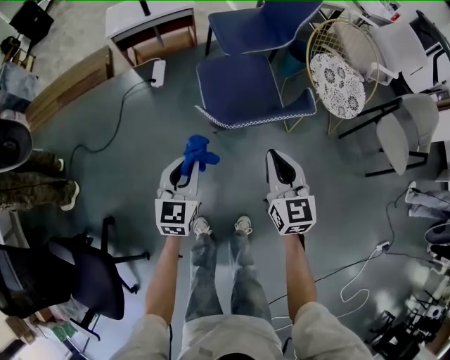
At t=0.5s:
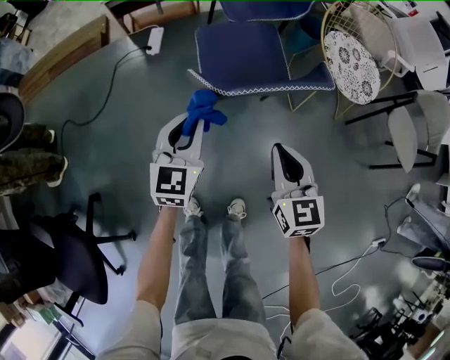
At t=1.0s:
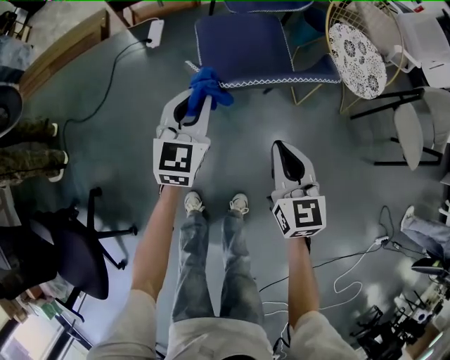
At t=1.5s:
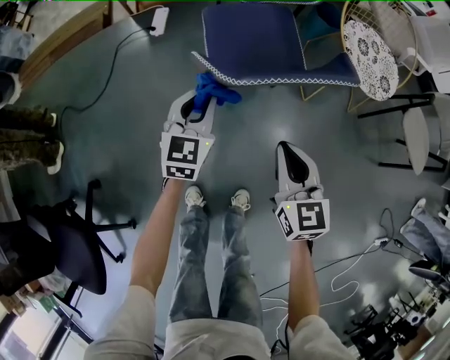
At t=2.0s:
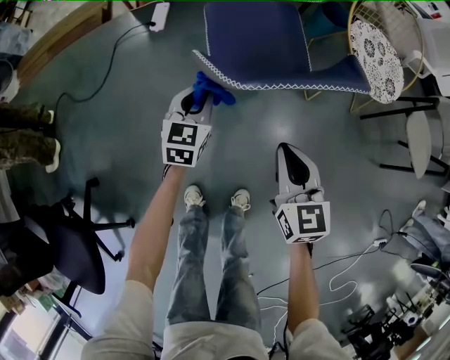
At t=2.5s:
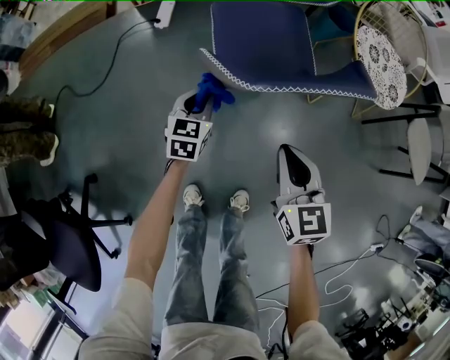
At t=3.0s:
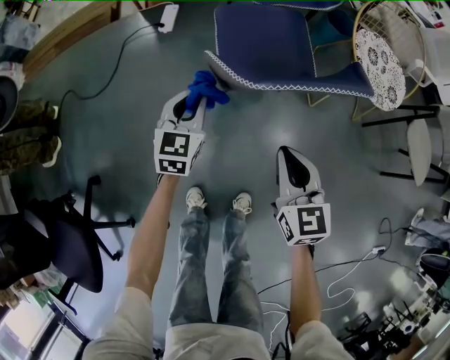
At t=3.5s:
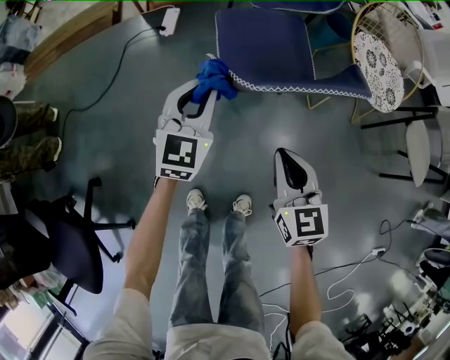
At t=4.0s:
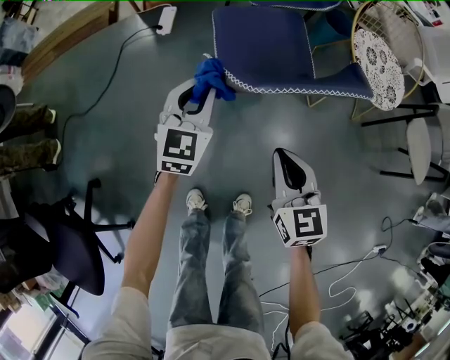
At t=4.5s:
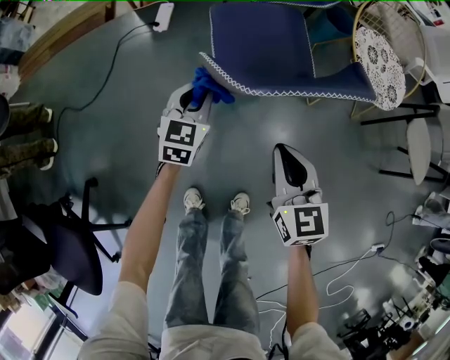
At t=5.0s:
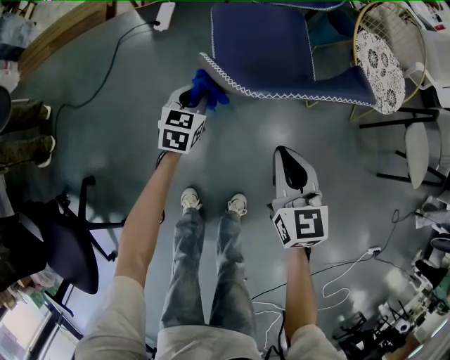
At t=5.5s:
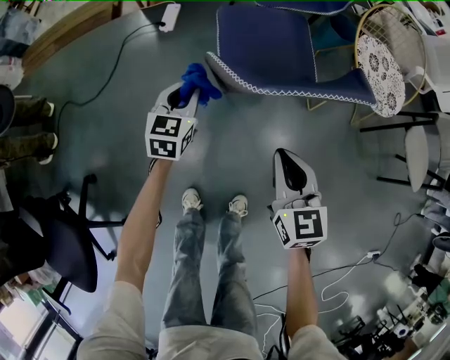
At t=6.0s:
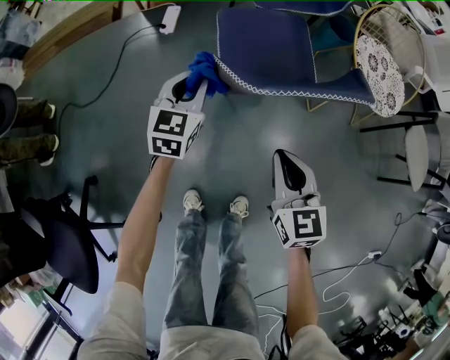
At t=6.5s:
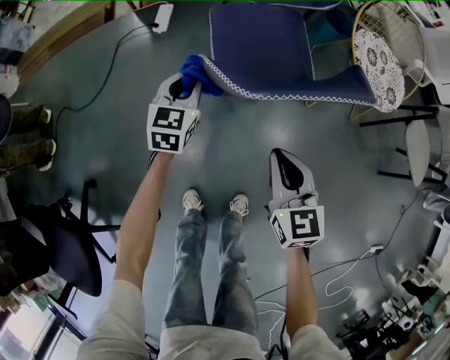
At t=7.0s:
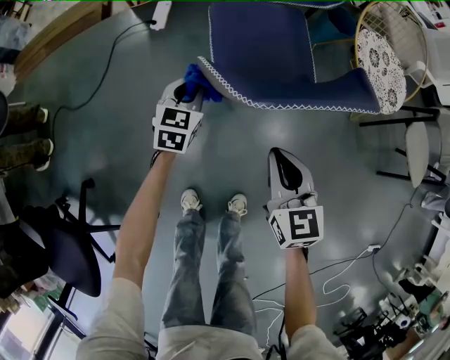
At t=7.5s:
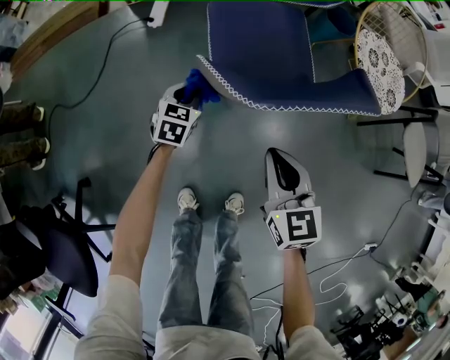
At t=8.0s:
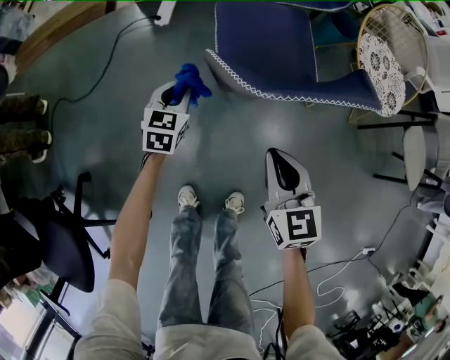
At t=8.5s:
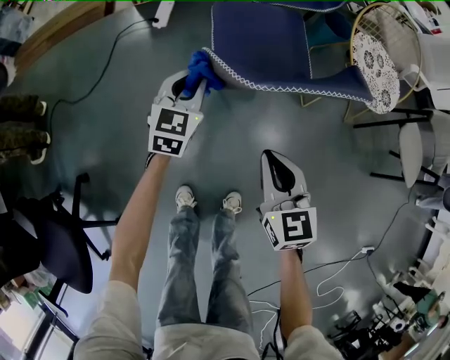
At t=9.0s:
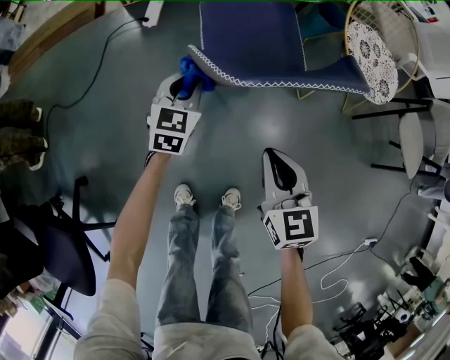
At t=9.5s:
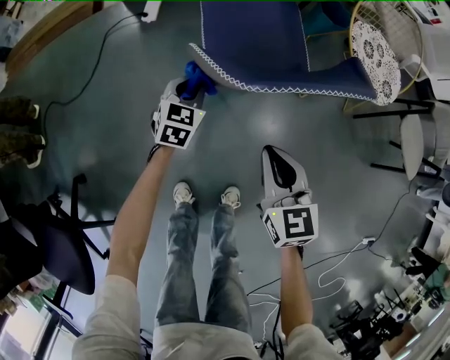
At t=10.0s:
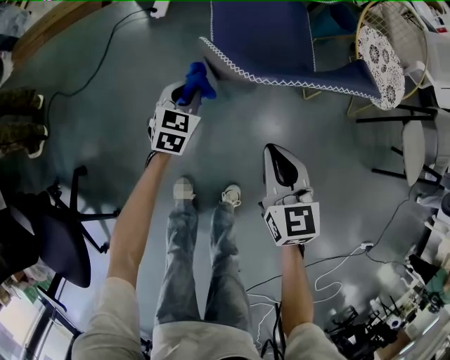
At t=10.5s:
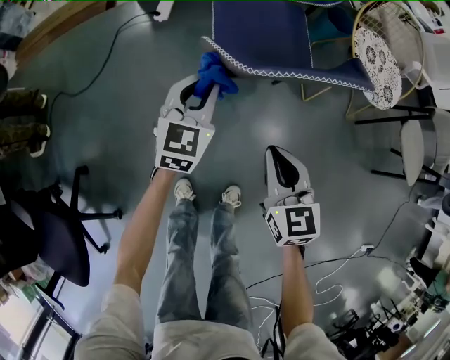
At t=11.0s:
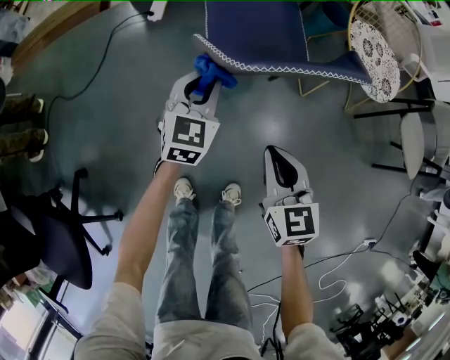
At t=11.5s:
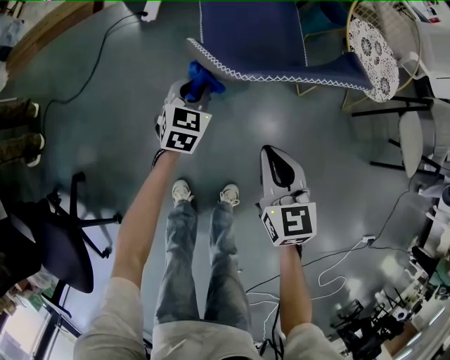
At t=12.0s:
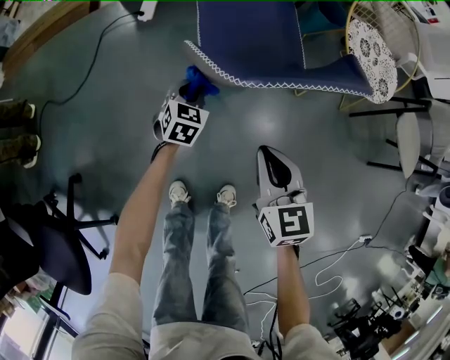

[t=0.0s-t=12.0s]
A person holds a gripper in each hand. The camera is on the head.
t=0.0s to t=2.0s: The left gripper travels downward and forward by about 25 cm. The right gripper moves downward, roughly 15 cm.
t=2.0s to t=4.0s: The left gripper shifts about 10 cm upward.
t=4.0s to t=6.0s: The left gripper moves approximately 15 cm downward and comes back.
t=6.0s to t=8.0s: The left gripper travels downward by about 10 cm.
t=8.0s to t=10.0s: The left gripper moves roughly 10 cm upward and comes back.
t=10.0s to t=12.0s: The left gripper moves some 15 cm upward and comes back.

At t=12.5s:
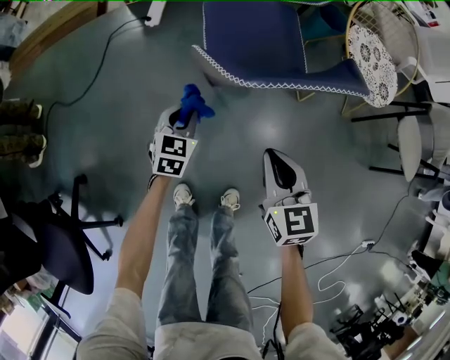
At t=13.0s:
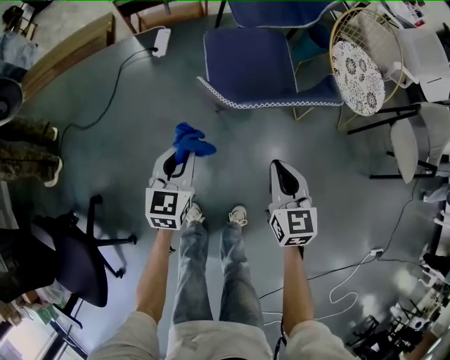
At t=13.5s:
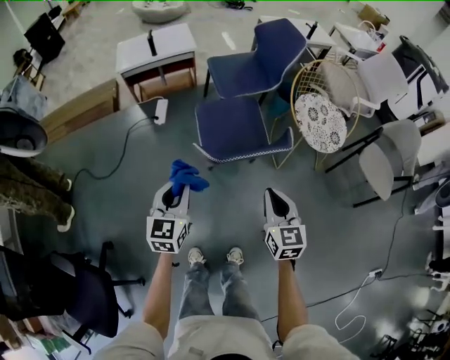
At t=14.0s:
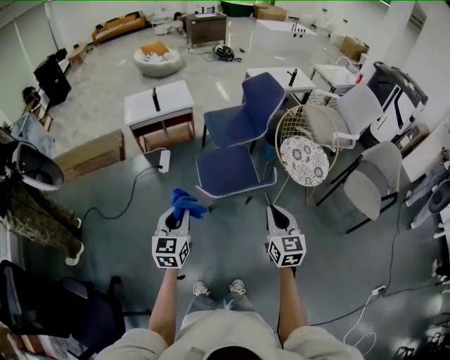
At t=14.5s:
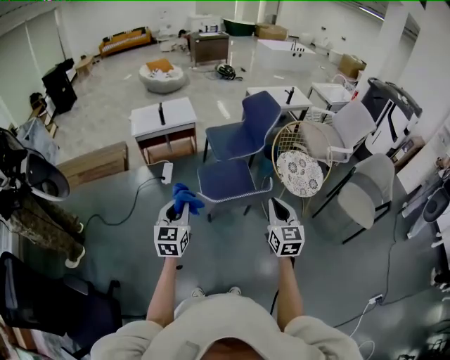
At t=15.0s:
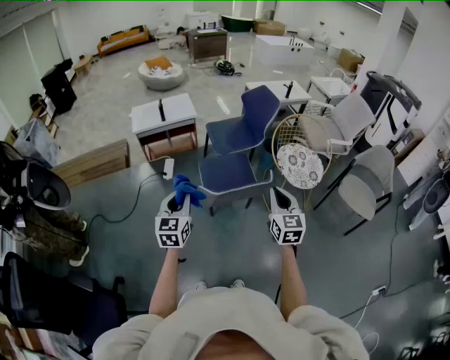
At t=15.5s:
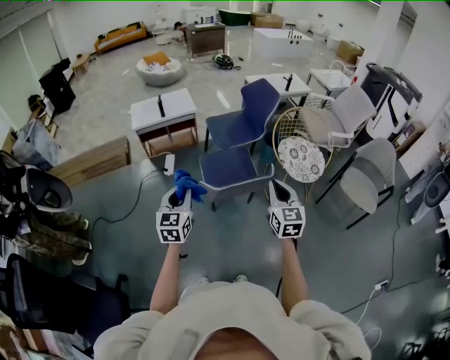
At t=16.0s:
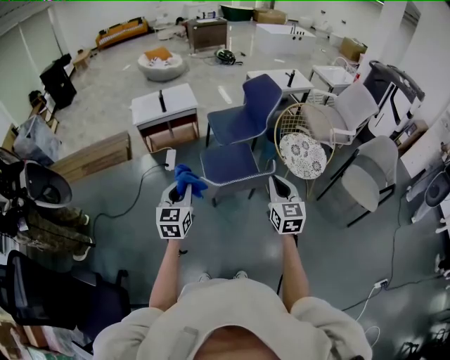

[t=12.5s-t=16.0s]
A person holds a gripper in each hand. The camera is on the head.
t=12.5s to t=14.5s: The two grippers go approximately 50 cm upward. The left gripper turns by approximately 30 degrees. Meanwhile the right gripper swivels some 20 degrees.
t=14.5s to t=16.0s: The grippers make only small movements.

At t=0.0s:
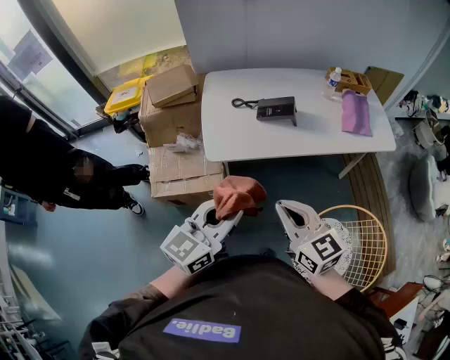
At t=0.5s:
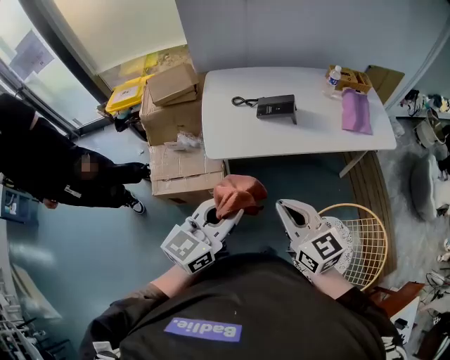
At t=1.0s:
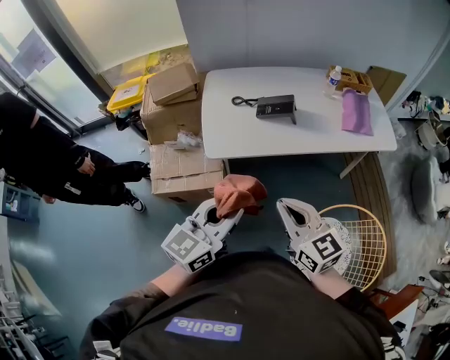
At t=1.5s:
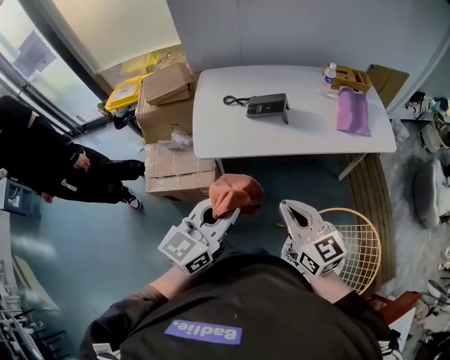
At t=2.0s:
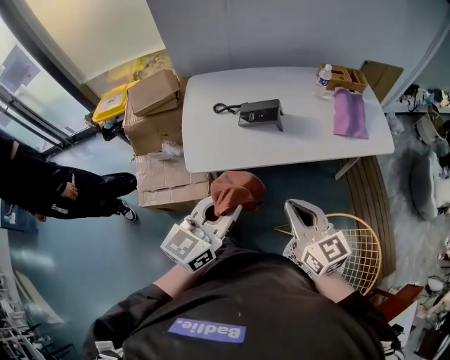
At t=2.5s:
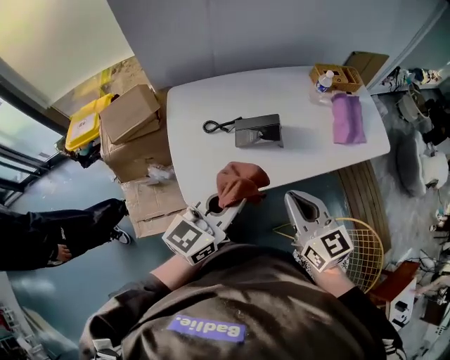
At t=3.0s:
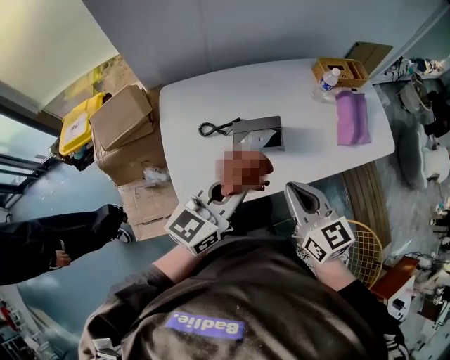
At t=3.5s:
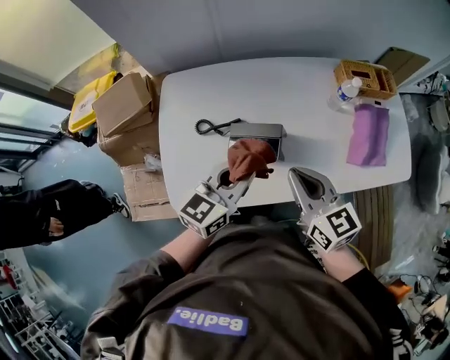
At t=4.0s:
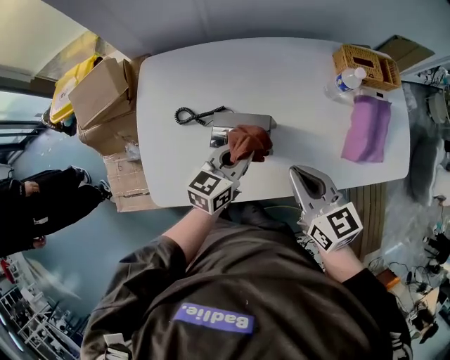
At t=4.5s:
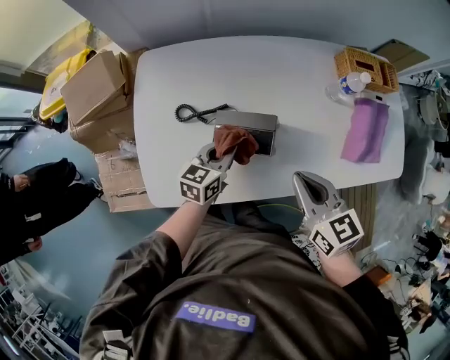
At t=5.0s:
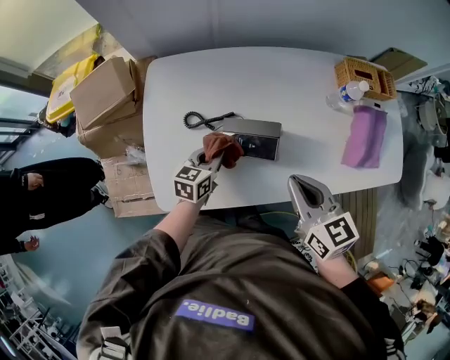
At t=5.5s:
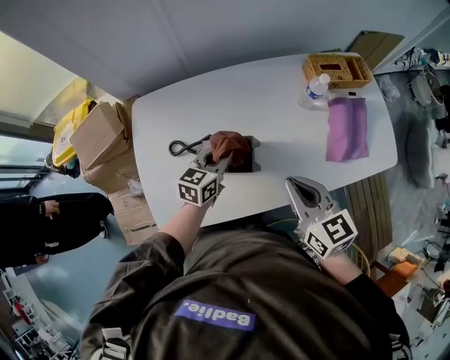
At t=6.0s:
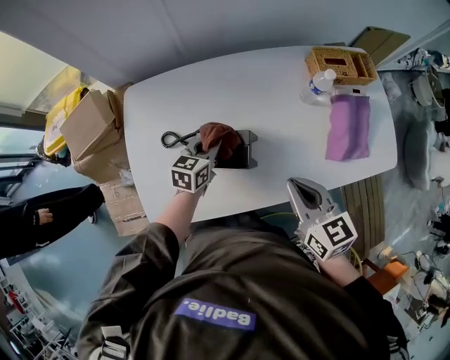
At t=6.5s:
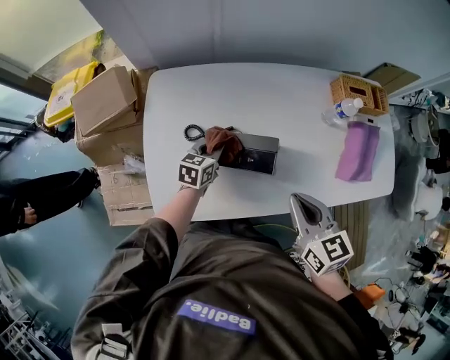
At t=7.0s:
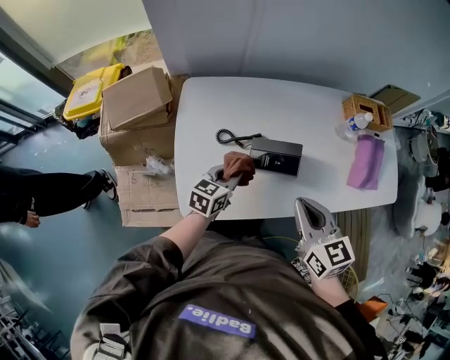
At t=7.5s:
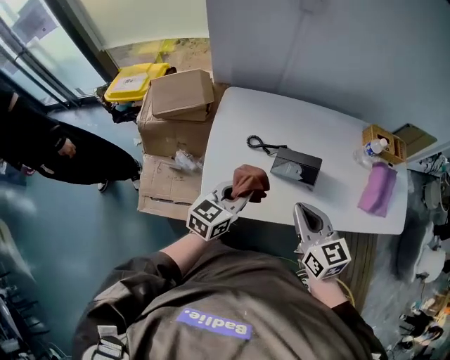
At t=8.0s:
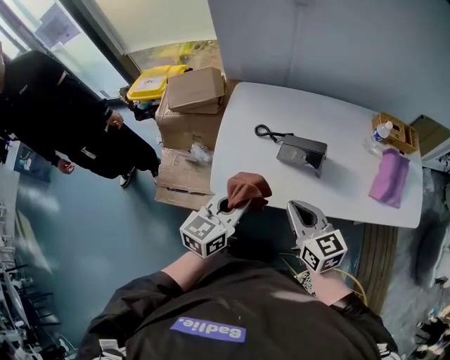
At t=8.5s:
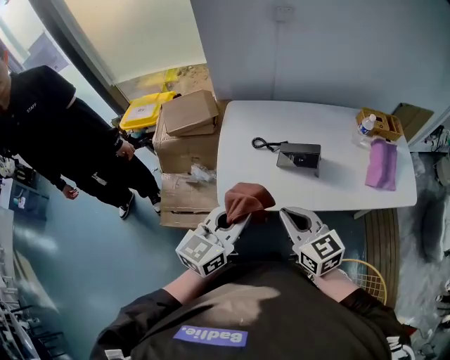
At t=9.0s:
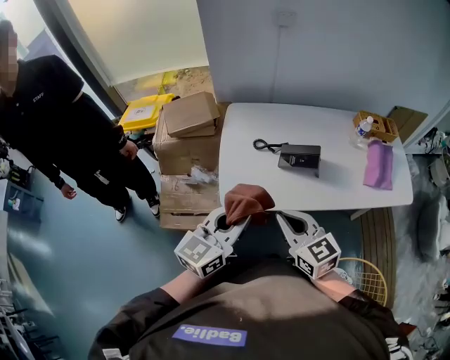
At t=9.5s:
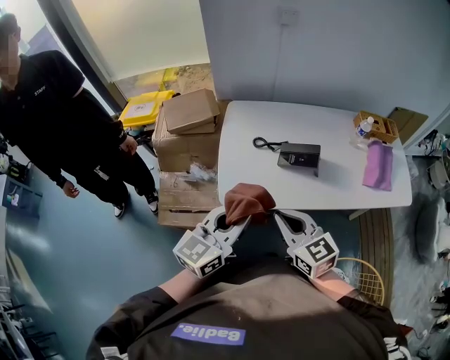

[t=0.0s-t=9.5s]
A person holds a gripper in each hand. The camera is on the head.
t=0.0s to t=2.0s: The left gripper travels forward and to the right by roughly 10 cm. Meanwhile the right gripper goes some 10 cm to the right and forward.
t=2.0s to t=4.0s: The right gripper goes approximately 35 cm forward. The left gripper travels forward and downward by approximately 40 cm.
t=4.0s to t=5.5s: The left gripper goes about 5 cm forward, and reaches roughly 10 cm to the left, then returns.
t=5.5s to t=7.5s: The right gripper is displaced to the left and backward by roughly 20 cm, while the left gripper shifts approximately 25 cm backward, to the left and upward.
t=7.5s to t=9.5s: The left gripper moves backward and upward, approximately 20 cm. The right gripper heads backward and to the left, covering about 15 cm.

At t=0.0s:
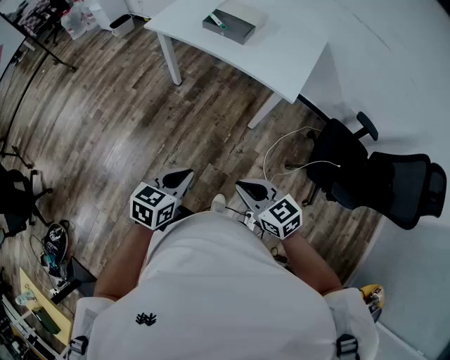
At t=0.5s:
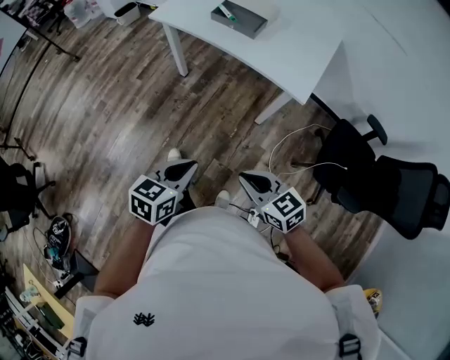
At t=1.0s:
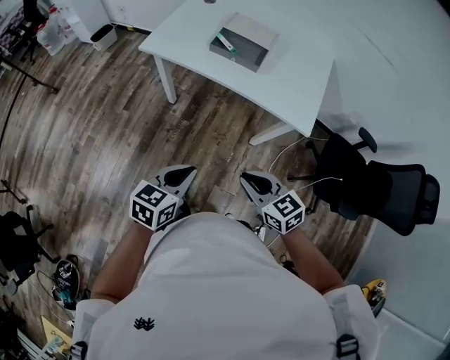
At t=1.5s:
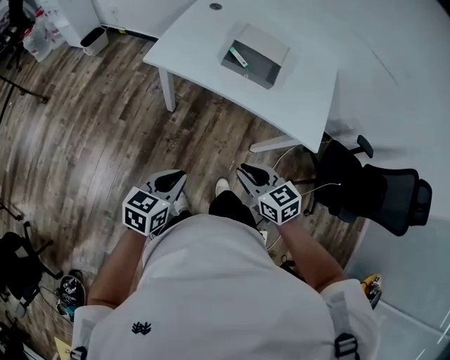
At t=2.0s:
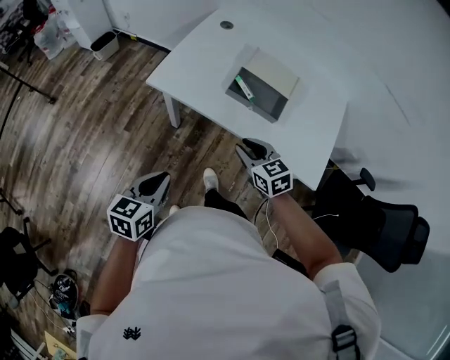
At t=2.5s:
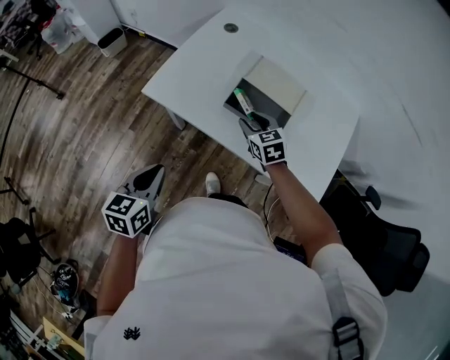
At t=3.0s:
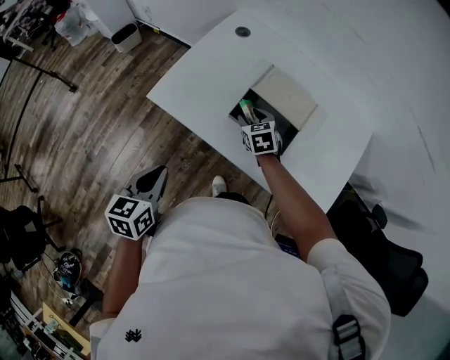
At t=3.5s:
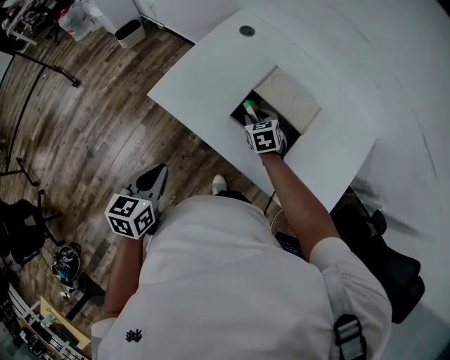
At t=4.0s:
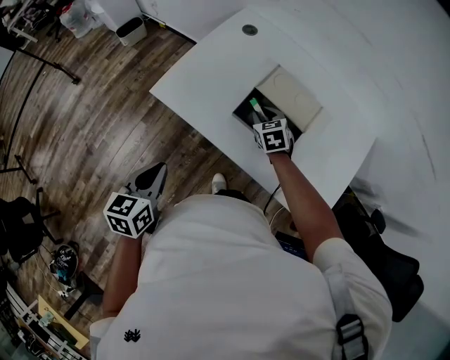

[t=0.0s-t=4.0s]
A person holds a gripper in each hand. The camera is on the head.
t=0.0s to t=2.0s: The pair of grippers is taken forward, some 50 cm. The right gripper opens its fingers.
t=2.0s to t=4.0s: The left gripper shifts some 10 cm forward. The right gripper is displaced forward by approximately 25 cm, and opens and closes again.
